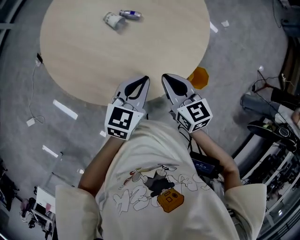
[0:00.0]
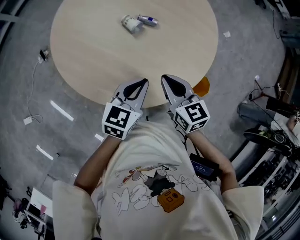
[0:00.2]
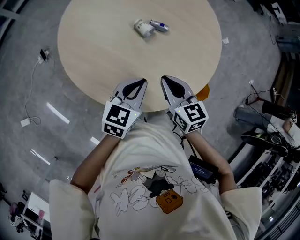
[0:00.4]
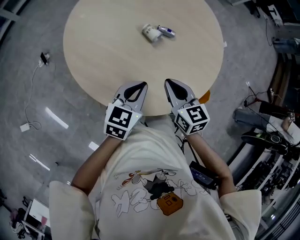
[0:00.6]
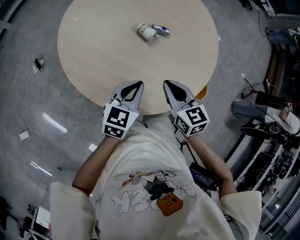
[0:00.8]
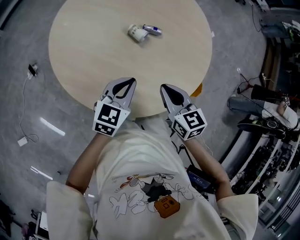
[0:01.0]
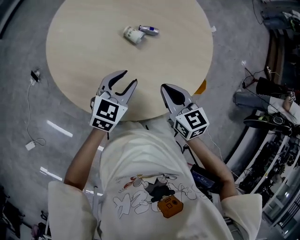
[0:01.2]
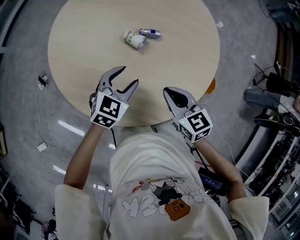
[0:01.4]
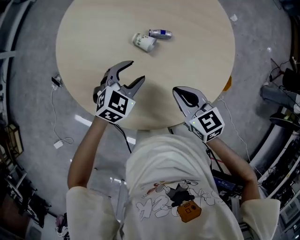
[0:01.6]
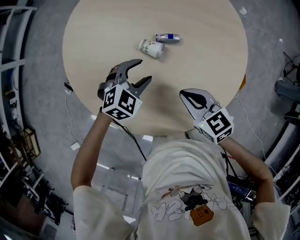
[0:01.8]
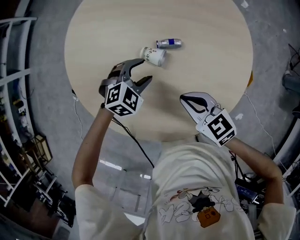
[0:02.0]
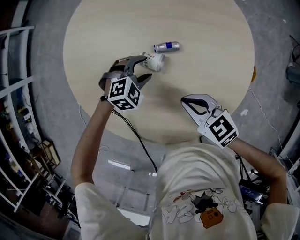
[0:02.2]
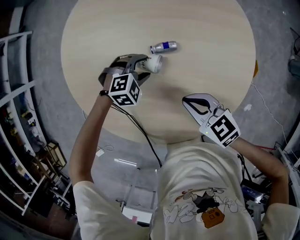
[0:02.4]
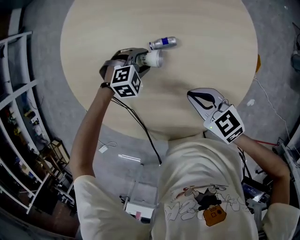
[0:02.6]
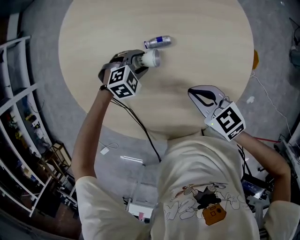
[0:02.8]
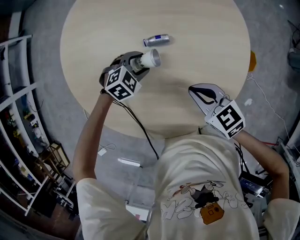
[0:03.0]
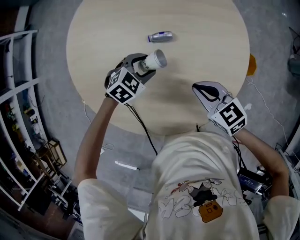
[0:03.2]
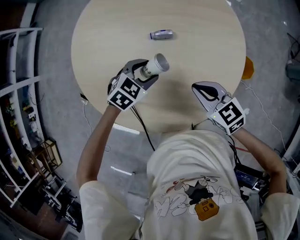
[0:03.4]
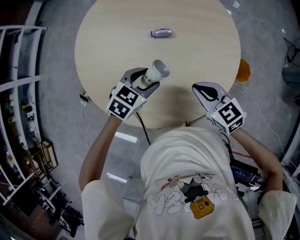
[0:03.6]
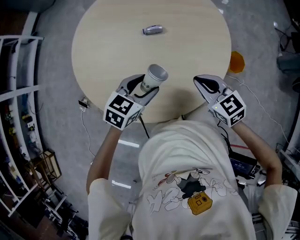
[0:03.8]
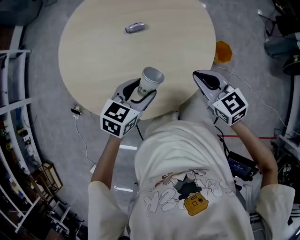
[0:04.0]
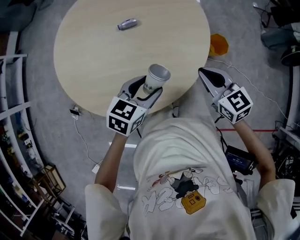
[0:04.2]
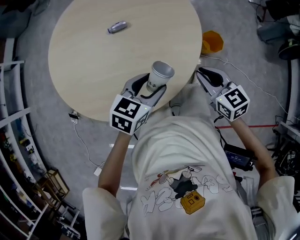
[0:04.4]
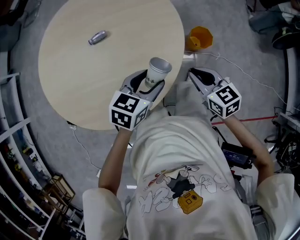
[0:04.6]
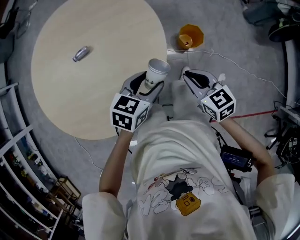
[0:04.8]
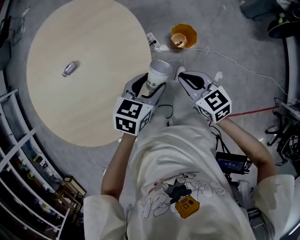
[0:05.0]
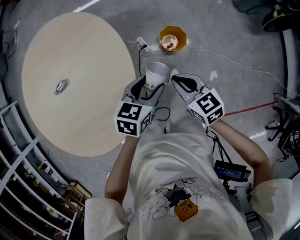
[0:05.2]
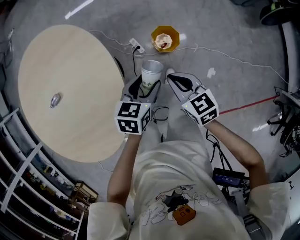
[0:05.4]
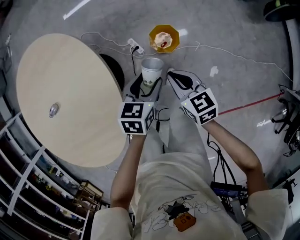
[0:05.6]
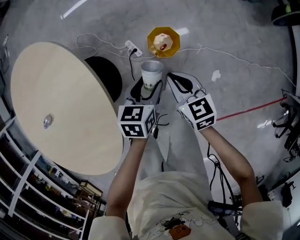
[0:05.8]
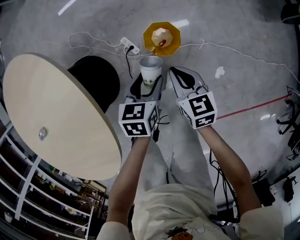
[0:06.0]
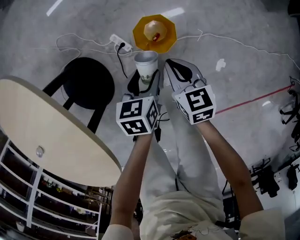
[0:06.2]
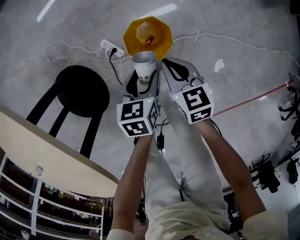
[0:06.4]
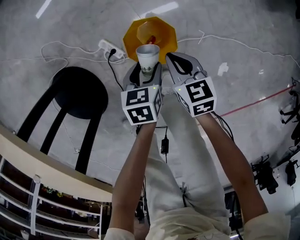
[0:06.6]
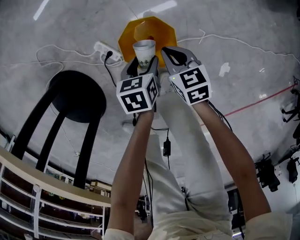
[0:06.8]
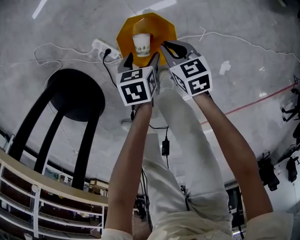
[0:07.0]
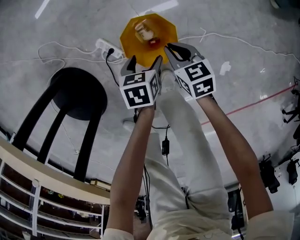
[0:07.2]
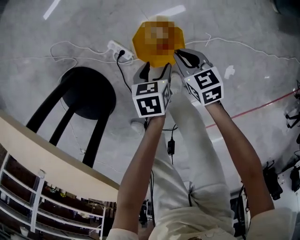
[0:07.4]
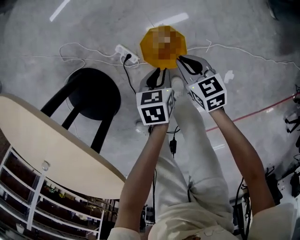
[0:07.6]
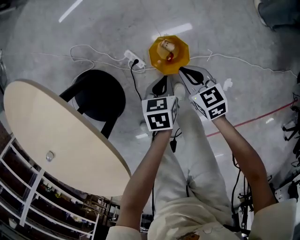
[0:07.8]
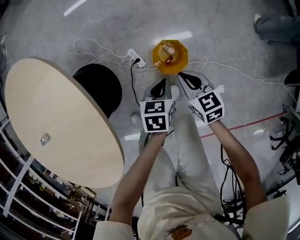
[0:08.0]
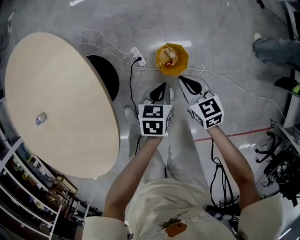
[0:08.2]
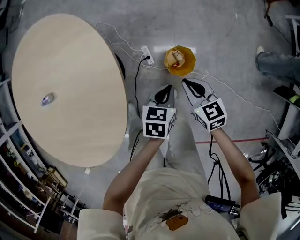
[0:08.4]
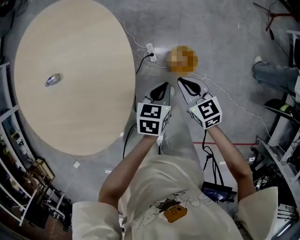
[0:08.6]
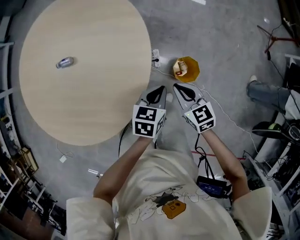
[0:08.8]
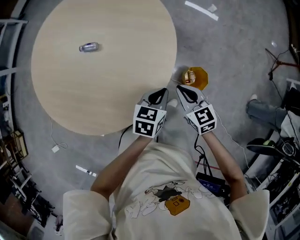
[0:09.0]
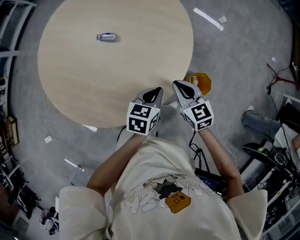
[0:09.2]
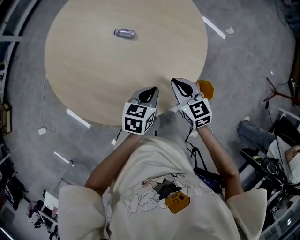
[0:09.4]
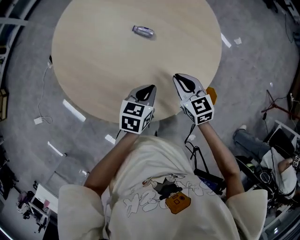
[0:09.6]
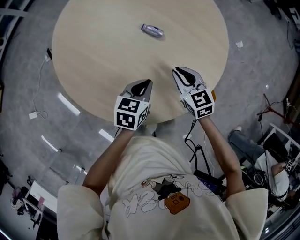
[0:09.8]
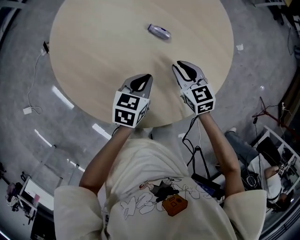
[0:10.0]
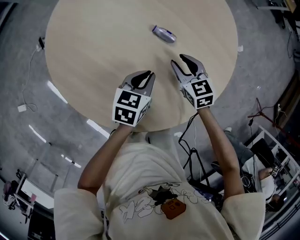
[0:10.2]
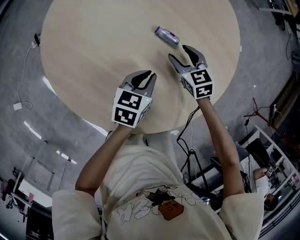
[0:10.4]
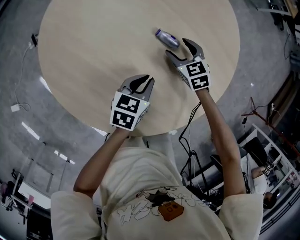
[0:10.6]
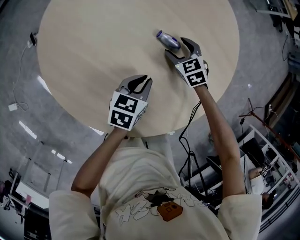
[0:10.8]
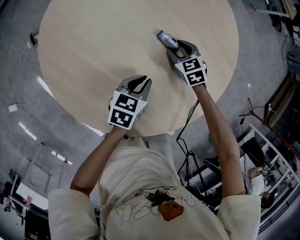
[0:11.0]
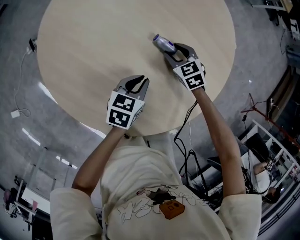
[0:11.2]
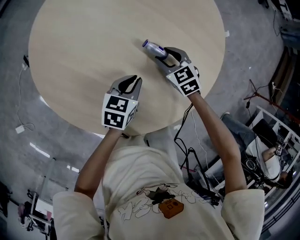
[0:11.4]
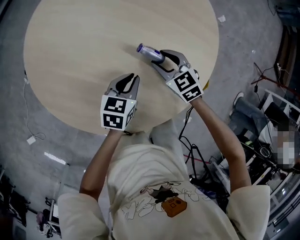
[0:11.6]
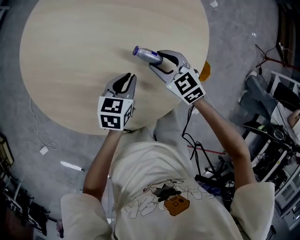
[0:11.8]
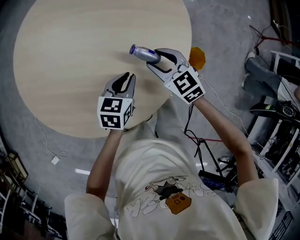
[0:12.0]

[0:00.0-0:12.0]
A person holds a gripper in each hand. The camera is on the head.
0:00.0 to 0:01.6: The left gripper shifts some 25 cm to the left and forward, rotates approximately 40 degrees, and opens up. Meanwhile the right gripper is displaced to the left and forward by roughly 15 cm.
0:01.6 to 0:03.0: The right gripper moves about 5 cm; the left gripper goes some 10 cm downward, and changes its angle by about 40 degrees.
0:03.0 to 0:04.4: The left gripper changes place by some 35 cm, and swivels roughly 40 degrees; the right gripper moves about 25 cm, and turns by about 30 degrees.
0:04.4 to 0:06.0: Both grippers are carried to the right and forward, about 50 cm. The two grippers go approximately 30 cm downward. The left gripper turns by about 20 degrees. The right gripper changes its angle by about 30 degrees.
0:06.0 to 0:07.6: The left gripper is displaced downward by roughly 20 cm, and closes. Meanwhile the right gripper shifts roughly 20 cm downward and forward.
0:07.6 to 0:09.0: The grippers both shift upward by some 40 cm. The right gripper turns by about 50 degrees; the left gripper swivels about 30 degrees.
0:09.0 to 0:10.4: The grippers both shift to the left and forward by approximately 40 cm. The left gripper changes its angle by some 20 degrees, while the right gripper changes its angle by approximately 30 degrees, and opens up.
0:10.4 to 0:12.0: The left gripper goes about 15 cm backward and to the right, and turns by about 30 degrees. The right gripper travels backward and to the right by approximately 20 cm.

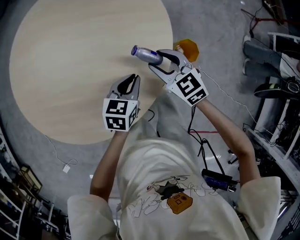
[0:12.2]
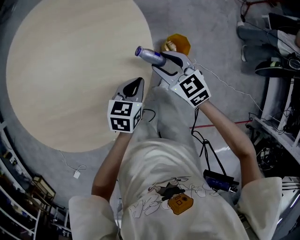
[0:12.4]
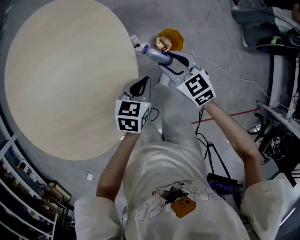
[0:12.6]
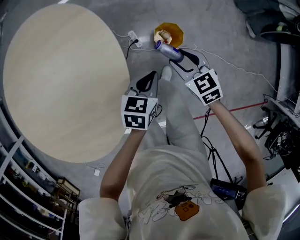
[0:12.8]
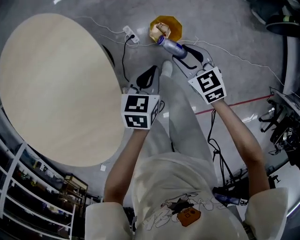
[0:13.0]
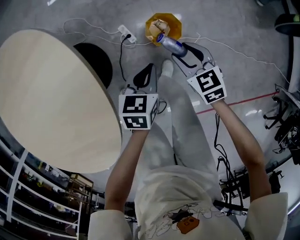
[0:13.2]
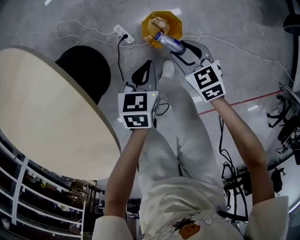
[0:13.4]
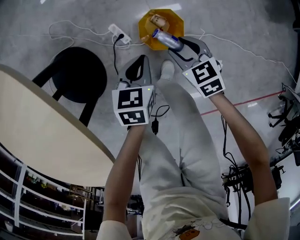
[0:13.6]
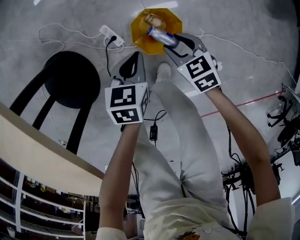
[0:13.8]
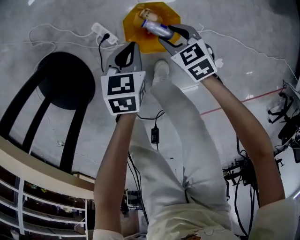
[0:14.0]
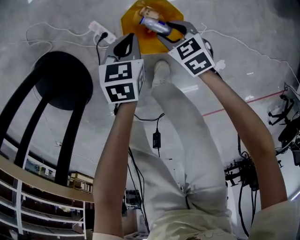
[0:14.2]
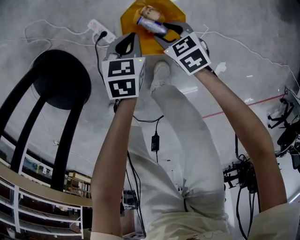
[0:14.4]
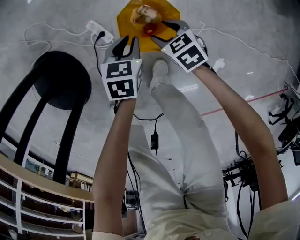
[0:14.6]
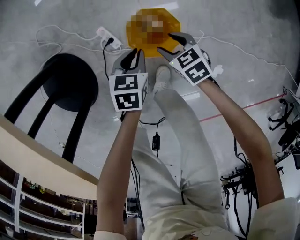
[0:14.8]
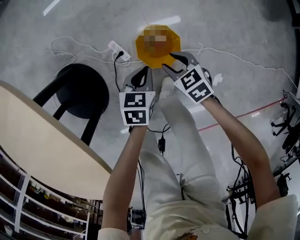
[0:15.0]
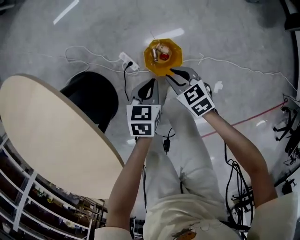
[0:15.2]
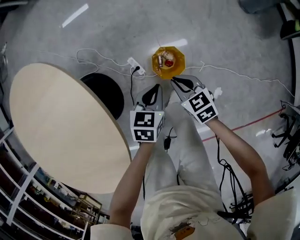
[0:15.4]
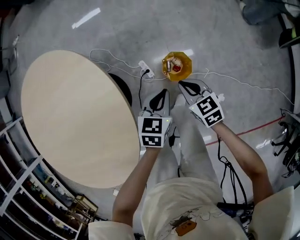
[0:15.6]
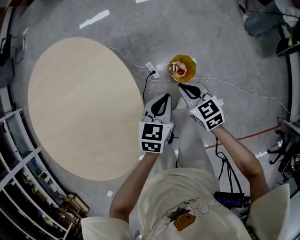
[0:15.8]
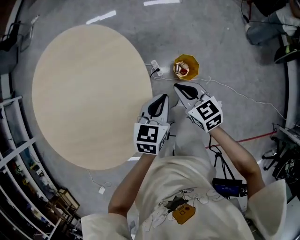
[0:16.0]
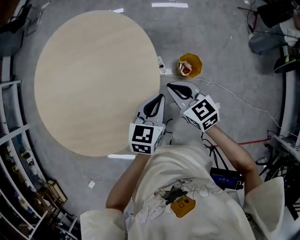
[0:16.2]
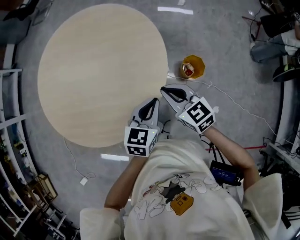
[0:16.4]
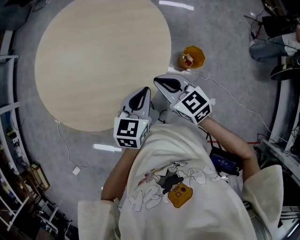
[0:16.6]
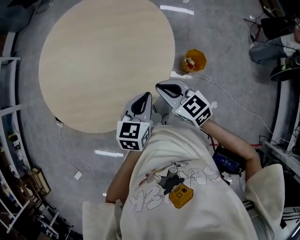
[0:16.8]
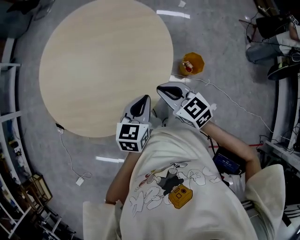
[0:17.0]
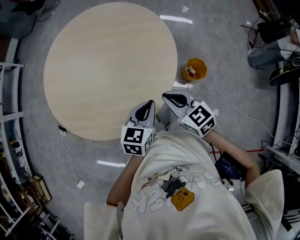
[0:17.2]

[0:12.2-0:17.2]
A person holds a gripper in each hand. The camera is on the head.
0:12.2 to 0:13.8: Both grippers are carried to the right and forward, roughly 40 cm. The two grippers go roughly 40 cm downward. The right gripper turns by some 40 degrees, while the left gripper changes its angle by roughly 20 degrees.
0:13.8 to 0:15.6: The two grippers go about 30 cm upward. The right gripper closes.
0:15.6 to 0:17.2: The two grippers travel together, to the left and backward, roughly 40 cm. The grippers both shift upward by some 20 cm. The left gripper swivels roughly 20 degrees. Meanwhile the right gripper changes its angle by roughly 30 degrees.

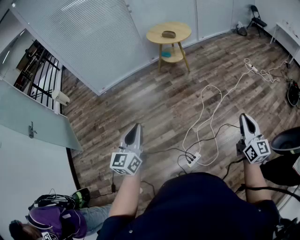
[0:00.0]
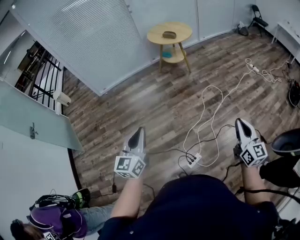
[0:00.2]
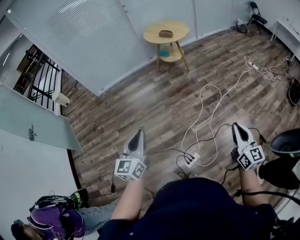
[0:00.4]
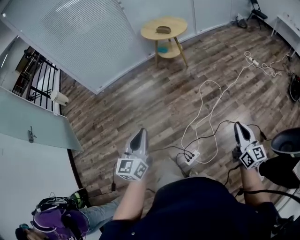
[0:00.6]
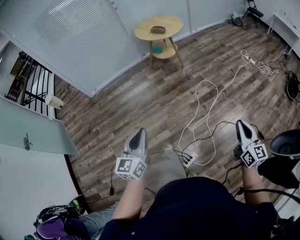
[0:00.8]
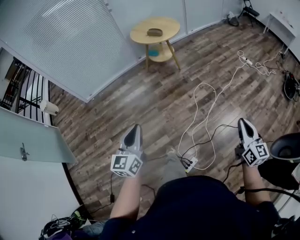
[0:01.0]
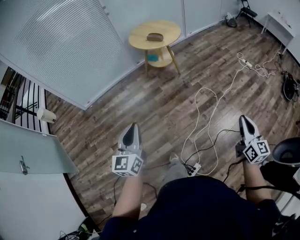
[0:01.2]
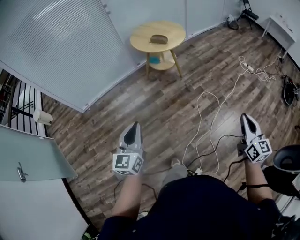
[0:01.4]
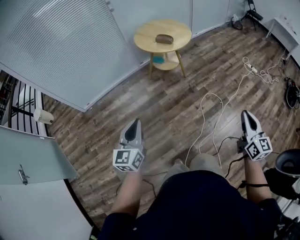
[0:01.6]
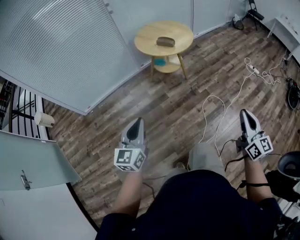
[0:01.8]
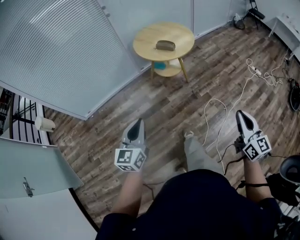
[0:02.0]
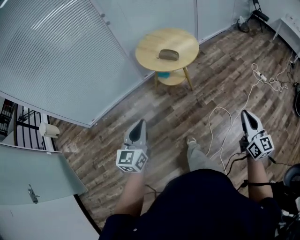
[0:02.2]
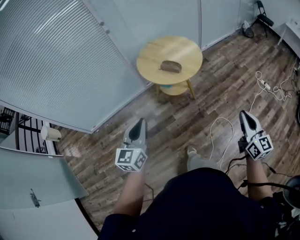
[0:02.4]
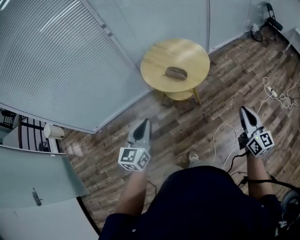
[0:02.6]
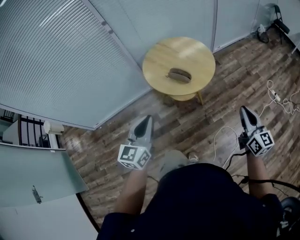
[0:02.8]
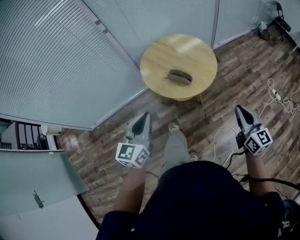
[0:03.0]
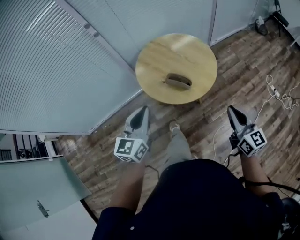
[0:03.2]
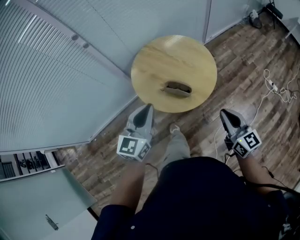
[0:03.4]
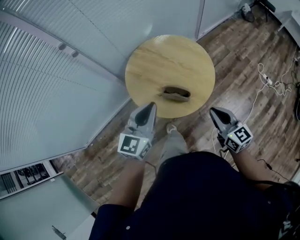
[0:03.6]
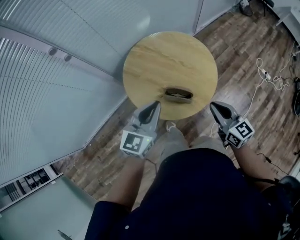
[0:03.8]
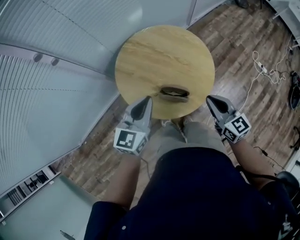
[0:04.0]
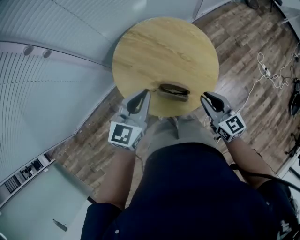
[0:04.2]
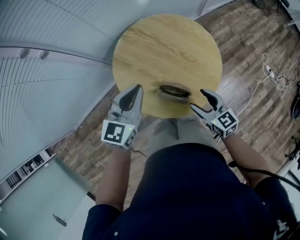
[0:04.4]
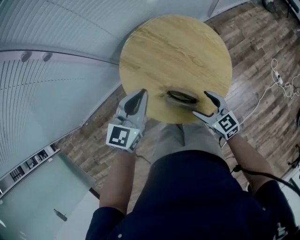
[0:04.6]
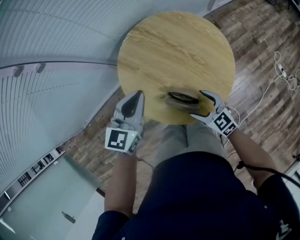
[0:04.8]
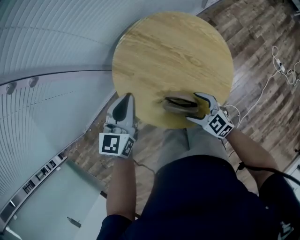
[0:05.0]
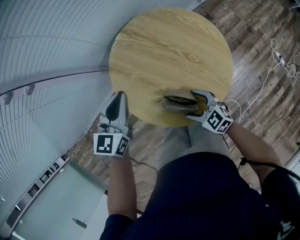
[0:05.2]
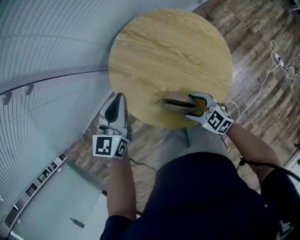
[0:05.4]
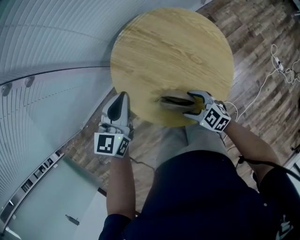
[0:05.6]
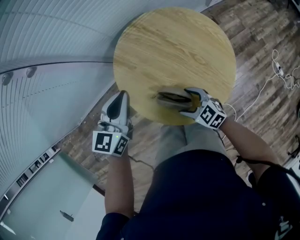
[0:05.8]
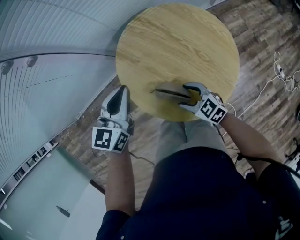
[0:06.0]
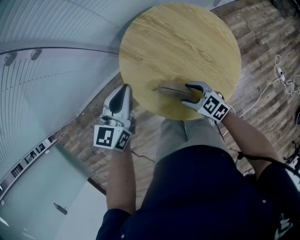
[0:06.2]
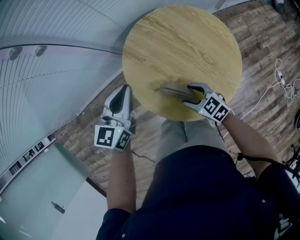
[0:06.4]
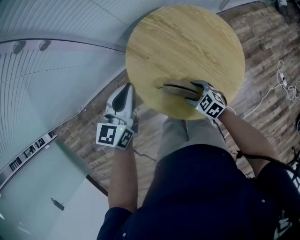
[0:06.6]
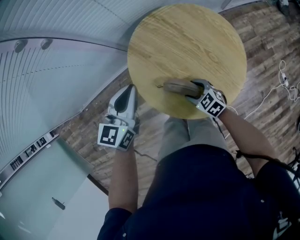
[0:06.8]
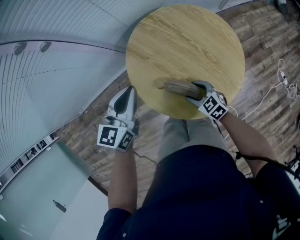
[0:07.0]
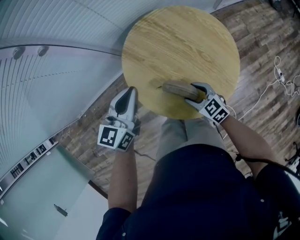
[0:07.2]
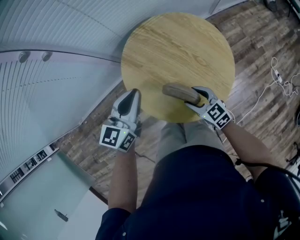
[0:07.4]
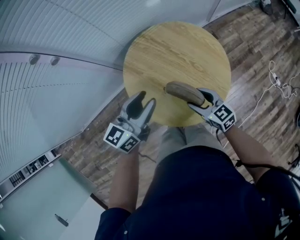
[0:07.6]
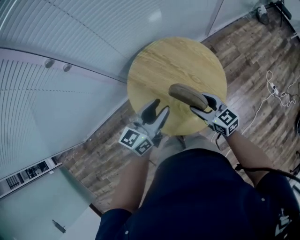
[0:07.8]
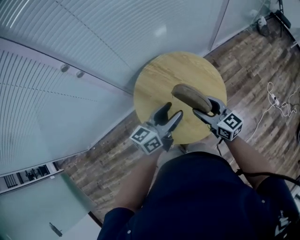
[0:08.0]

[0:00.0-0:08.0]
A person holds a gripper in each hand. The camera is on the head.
0:00.0 to 0:01.6: Both grippers move forward, approximately 40 cm.
0:01.6 to 0:03.2: The pair of grippers is taken forward, roughly 70 cm.
0:03.2 to 0:04.8: The right gripper travels forward, downward and to the left by roughly 40 cm, changes its angle by about 40 degrees, and opens. Meanwhile the left gripper goes approximately 35 cm forward and downward.
0:04.8 to 0:06.4: The right gripper moves about 5 cm. Meanwhile the left gripper goes approximately 5 cm to the left.
0:06.4 to 0:08.0: The right gripper travels upward by approximately 20 cm, and changes its angle by approximately 40 degrees; the left gripper changes place by some 15 cm, changes its angle by some 30 degrees, and opens its fingers.
